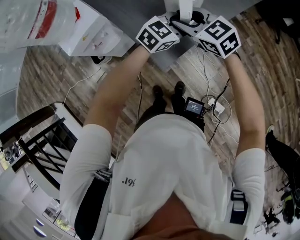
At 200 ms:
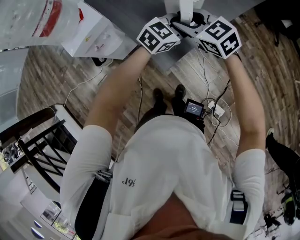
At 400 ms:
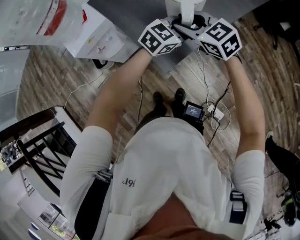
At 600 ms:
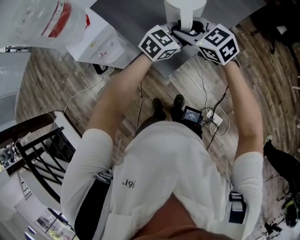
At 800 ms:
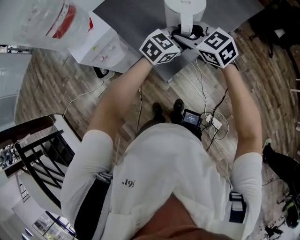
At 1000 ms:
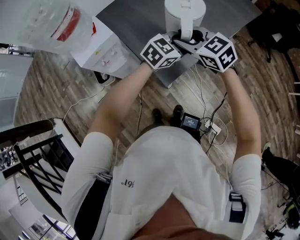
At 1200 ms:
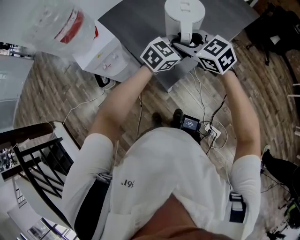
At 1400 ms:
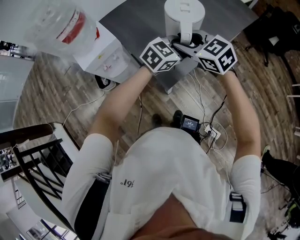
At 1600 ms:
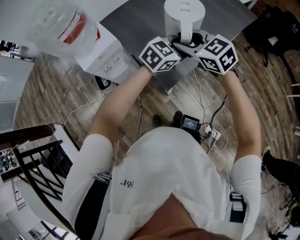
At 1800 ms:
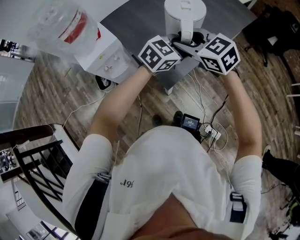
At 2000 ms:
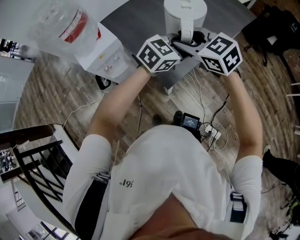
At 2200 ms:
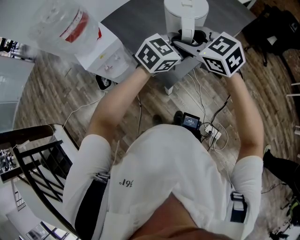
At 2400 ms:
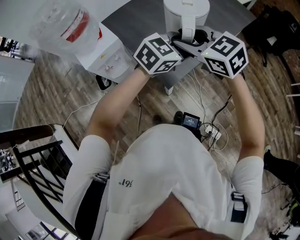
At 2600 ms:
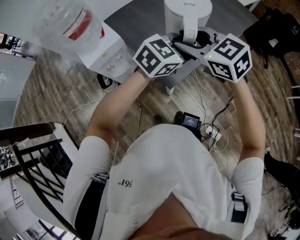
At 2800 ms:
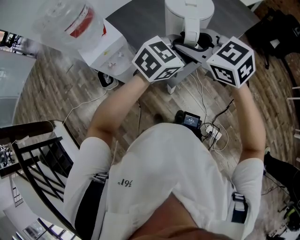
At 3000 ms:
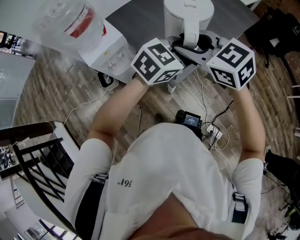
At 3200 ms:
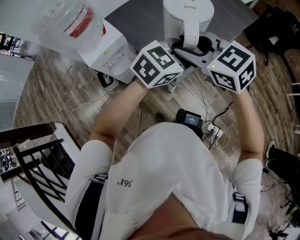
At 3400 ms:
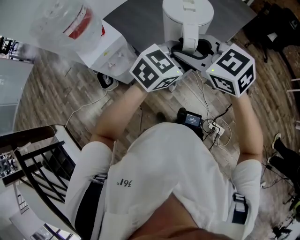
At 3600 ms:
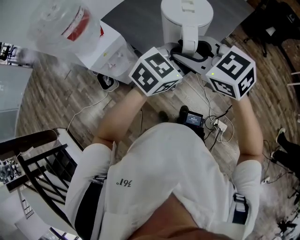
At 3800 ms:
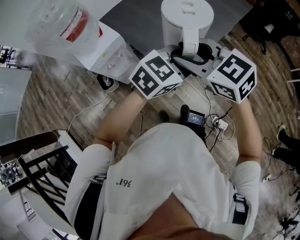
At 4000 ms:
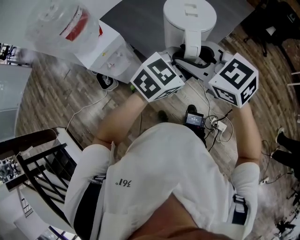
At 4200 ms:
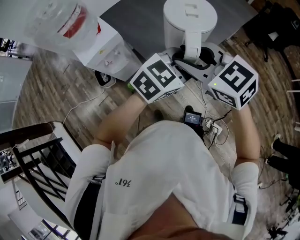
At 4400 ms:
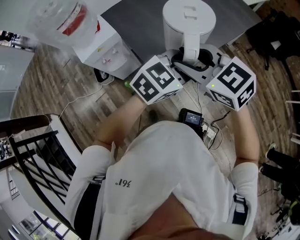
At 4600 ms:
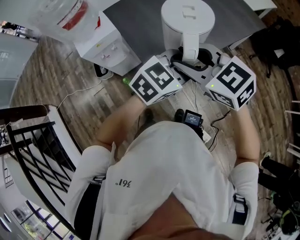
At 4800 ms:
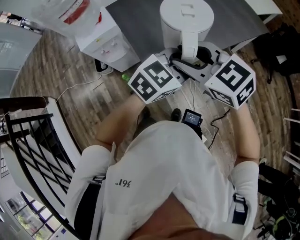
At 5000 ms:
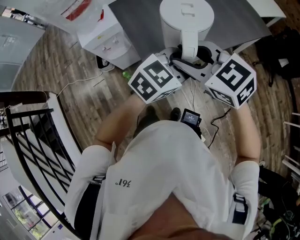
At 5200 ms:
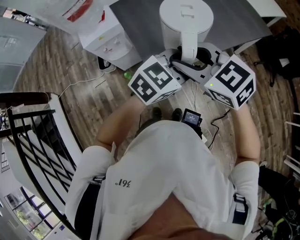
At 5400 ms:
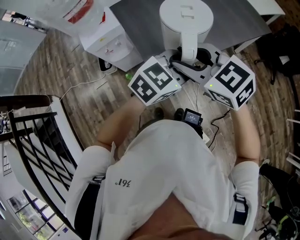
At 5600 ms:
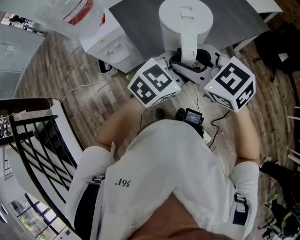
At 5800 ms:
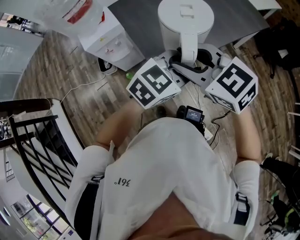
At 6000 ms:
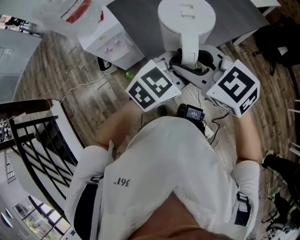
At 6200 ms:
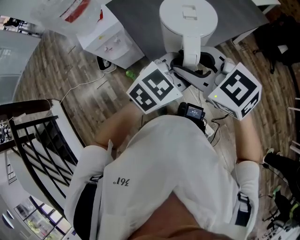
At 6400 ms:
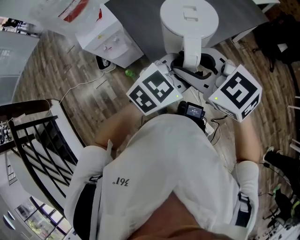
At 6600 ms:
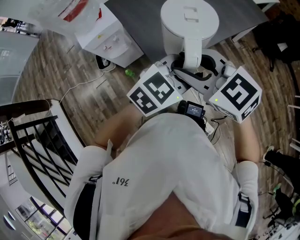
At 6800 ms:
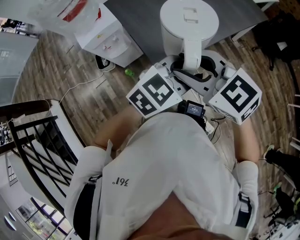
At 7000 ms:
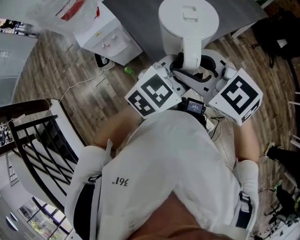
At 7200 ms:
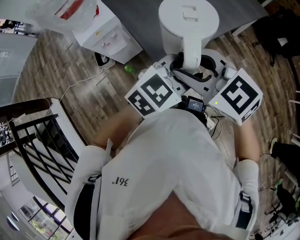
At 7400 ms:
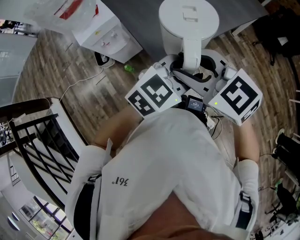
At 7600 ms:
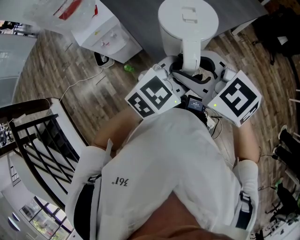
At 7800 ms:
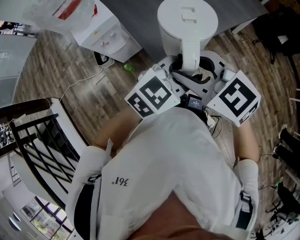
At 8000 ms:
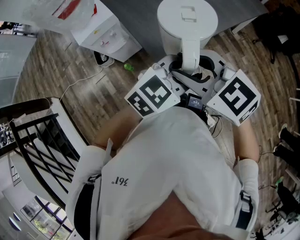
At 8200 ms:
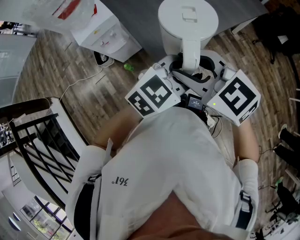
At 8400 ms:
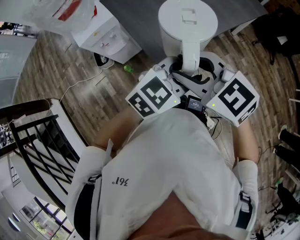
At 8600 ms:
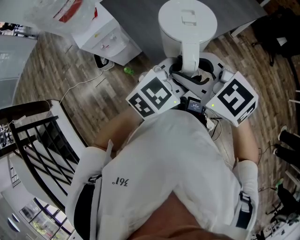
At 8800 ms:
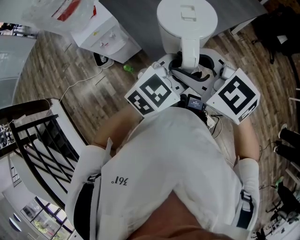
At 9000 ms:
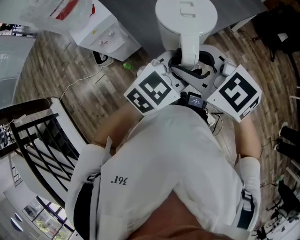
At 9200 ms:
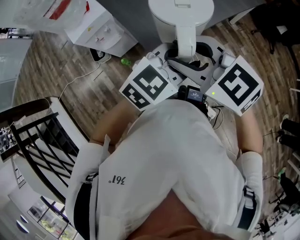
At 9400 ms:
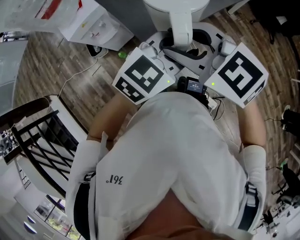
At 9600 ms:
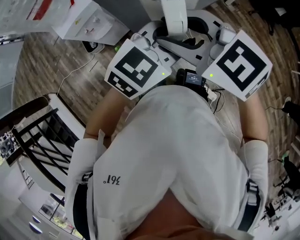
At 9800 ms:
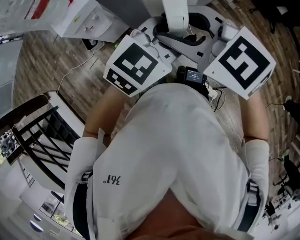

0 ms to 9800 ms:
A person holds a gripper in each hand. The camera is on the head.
0 ms to 1400 ms: The grippers both shift upward by roughly 10 cm.
1400 ms to 2800 ms: Both grippers travel together upward and backward, some 10 cm.
2800 ms to 4200 ms: The left gripper shifts by roughly 5 cm, while the right gripper changes place by roughly 5 cm.
4200 ms to 5600 ms: The grippers both shift to the right by approximately 5 cm.
5600 ms to 7000 ms: Both grippers move backward, about 5 cm.
7000 ms to 9800 ms: The grippers make only small movements.

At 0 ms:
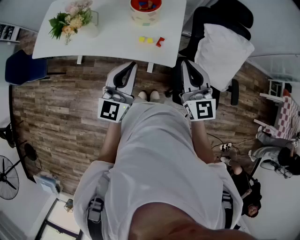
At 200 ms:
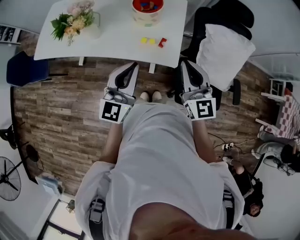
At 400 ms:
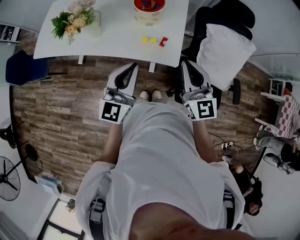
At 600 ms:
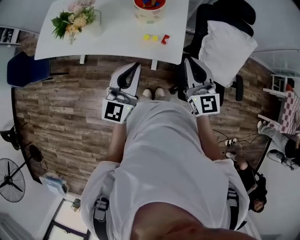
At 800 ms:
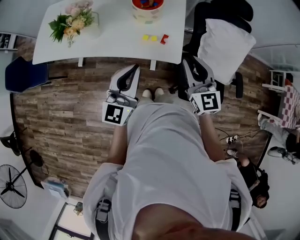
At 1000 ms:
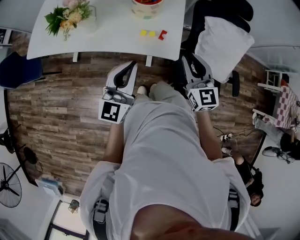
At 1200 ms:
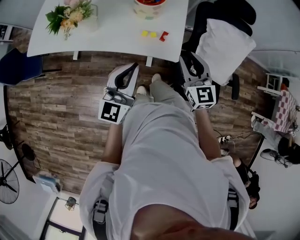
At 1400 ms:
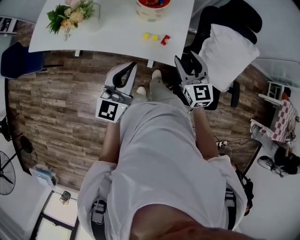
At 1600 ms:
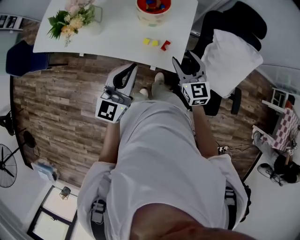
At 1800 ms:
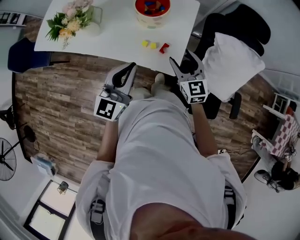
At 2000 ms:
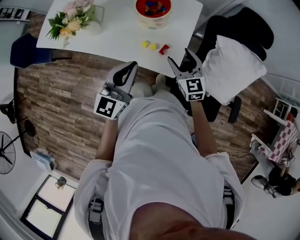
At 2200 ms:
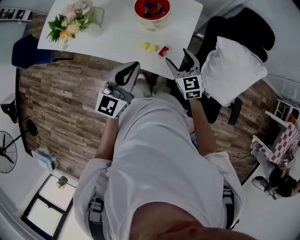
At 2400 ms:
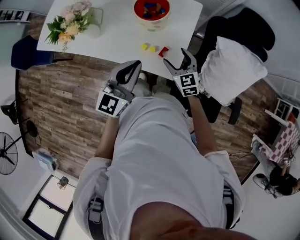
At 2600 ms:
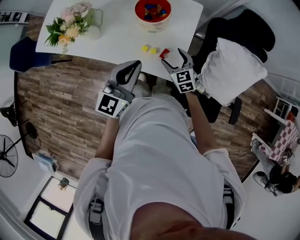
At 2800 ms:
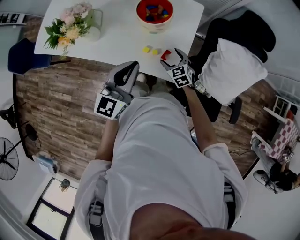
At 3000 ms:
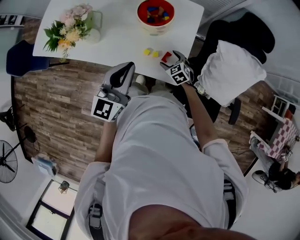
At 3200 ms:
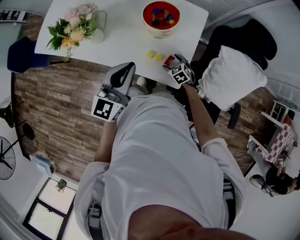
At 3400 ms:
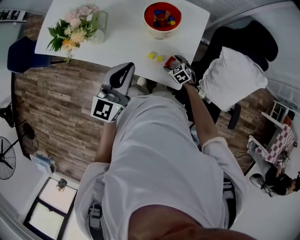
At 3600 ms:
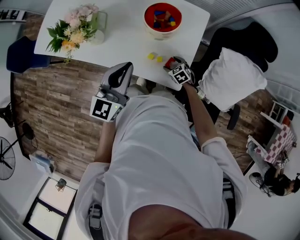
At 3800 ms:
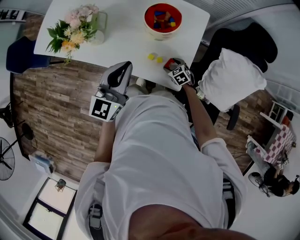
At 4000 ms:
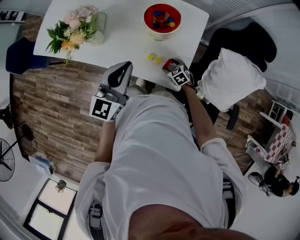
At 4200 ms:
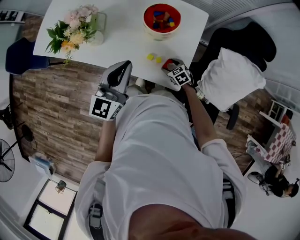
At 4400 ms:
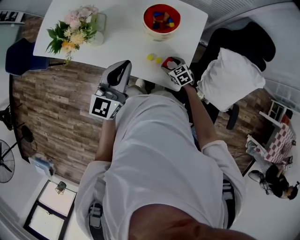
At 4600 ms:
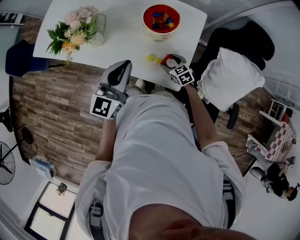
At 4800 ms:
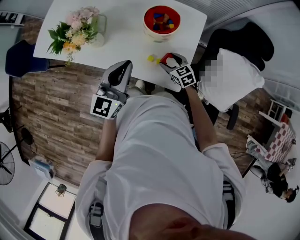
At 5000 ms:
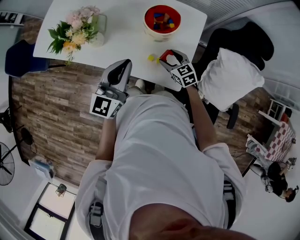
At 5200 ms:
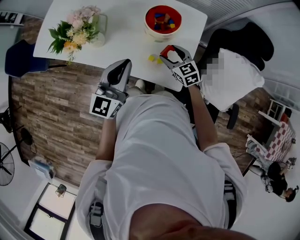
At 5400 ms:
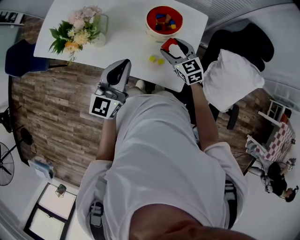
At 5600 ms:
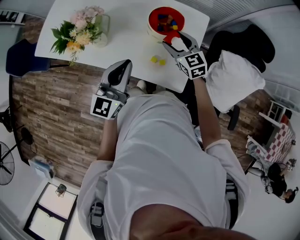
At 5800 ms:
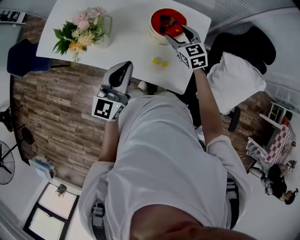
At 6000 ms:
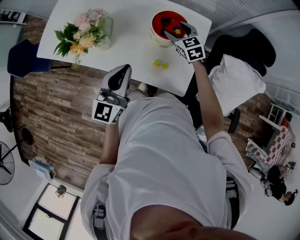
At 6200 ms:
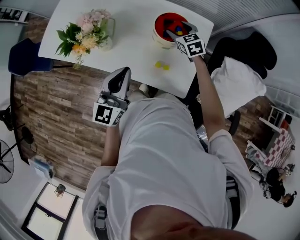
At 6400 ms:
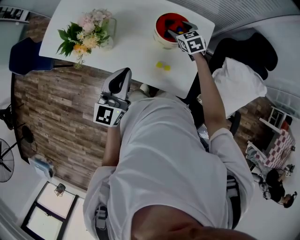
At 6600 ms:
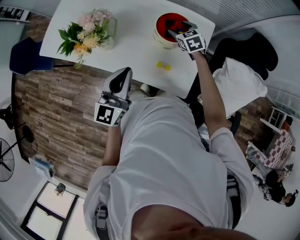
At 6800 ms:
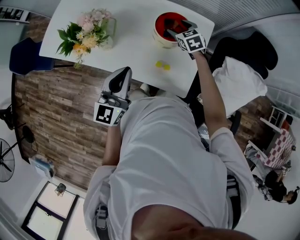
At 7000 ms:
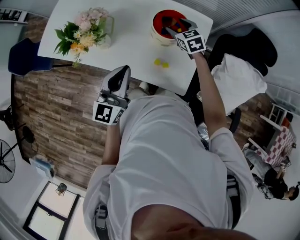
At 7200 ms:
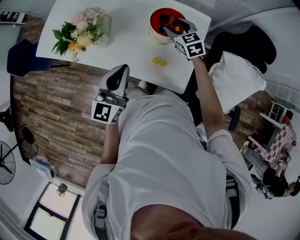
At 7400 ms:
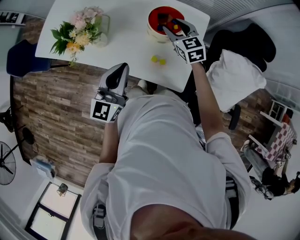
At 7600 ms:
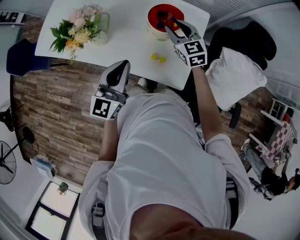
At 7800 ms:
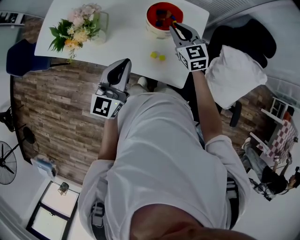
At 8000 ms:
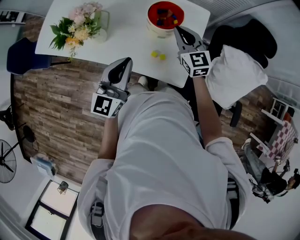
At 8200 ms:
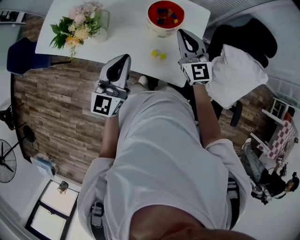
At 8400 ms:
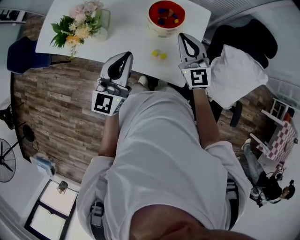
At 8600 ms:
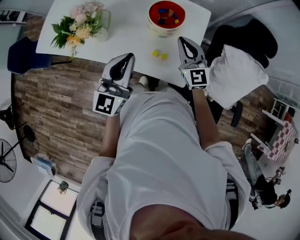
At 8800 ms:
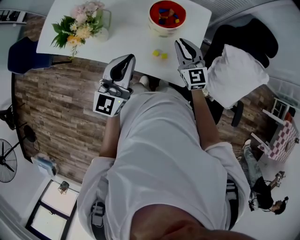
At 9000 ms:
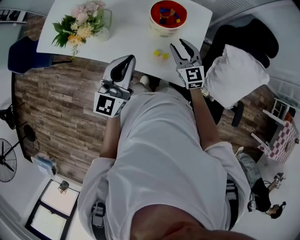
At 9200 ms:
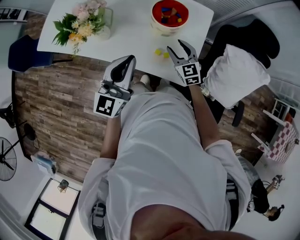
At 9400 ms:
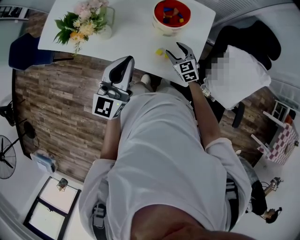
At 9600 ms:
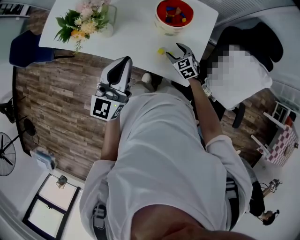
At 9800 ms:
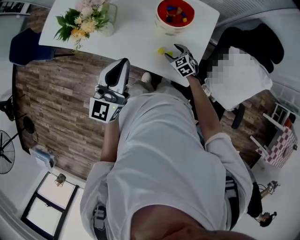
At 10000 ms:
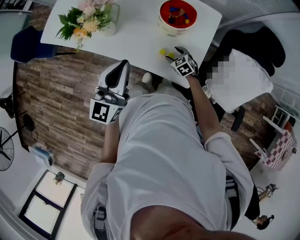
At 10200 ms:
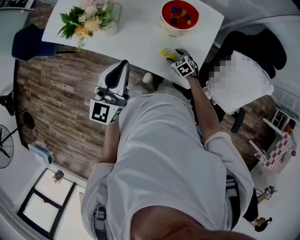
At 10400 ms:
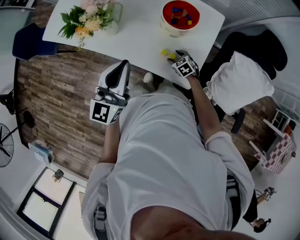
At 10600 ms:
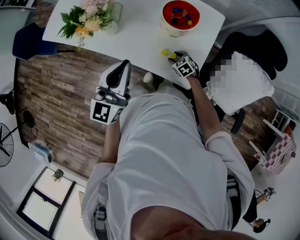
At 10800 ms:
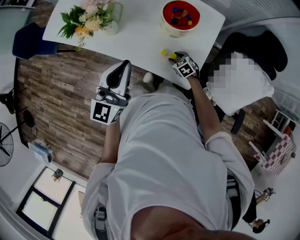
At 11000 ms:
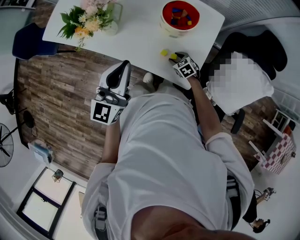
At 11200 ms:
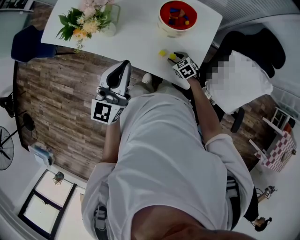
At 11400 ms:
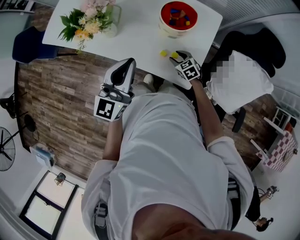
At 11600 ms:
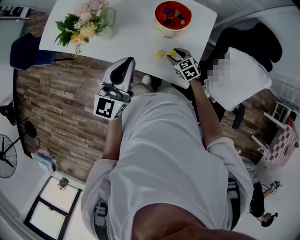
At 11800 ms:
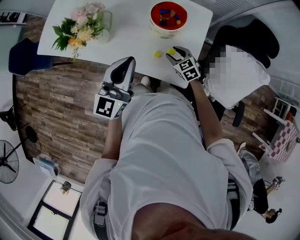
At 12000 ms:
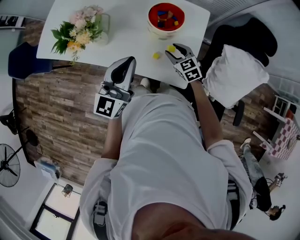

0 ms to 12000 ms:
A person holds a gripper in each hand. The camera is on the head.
0 ms to 1600 ms: The left gripper shifts by some 5 cm, while the right gripper travels downward and forward by some 15 cm, and opens its fingers.
1600 ms to 3000 ms: The left gripper heads forward, covering roughly 10 cm. The right gripper is displaced downward by some 25 cm, points its fingers roughly 30 degrees further downward, and opens up.
3000 ms to 4400 ms: The grippers stay close to where they were, moving slightly.
4400 ms to 6000 ms: The right gripper goes some 25 cm upward and forward, and swivels roughly 20 degrees.
6000 ms to 7600 ms: The right gripper shifts by about 5 cm, and closes.
7600 ms to 9000 ms: The right gripper is displaced backward by approximately 10 cm, and closes, then reopens.
9000 ms to 10400 ms: The right gripper heads downward, covering some 25 cm, and tips its fingers downward by about 40 degrees.
10400 ms to 12000 ms: The right gripper is displaced upward by about 15 cm, and rotates approximately 20 degrees.

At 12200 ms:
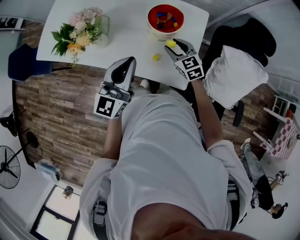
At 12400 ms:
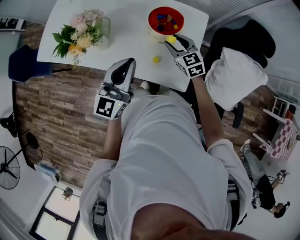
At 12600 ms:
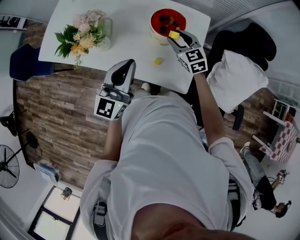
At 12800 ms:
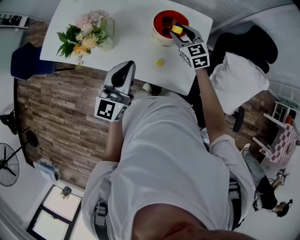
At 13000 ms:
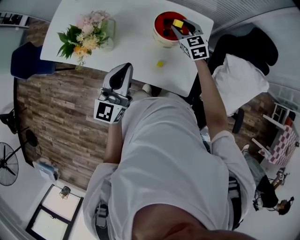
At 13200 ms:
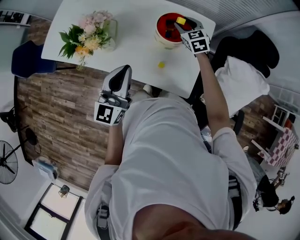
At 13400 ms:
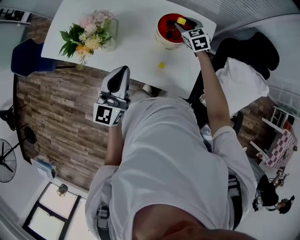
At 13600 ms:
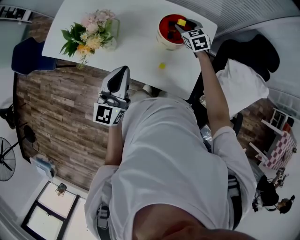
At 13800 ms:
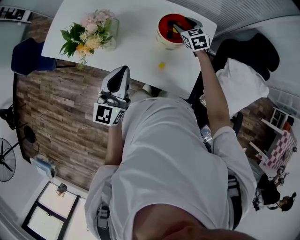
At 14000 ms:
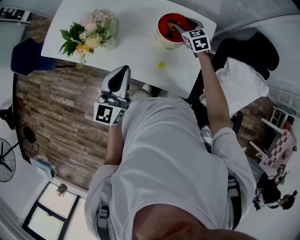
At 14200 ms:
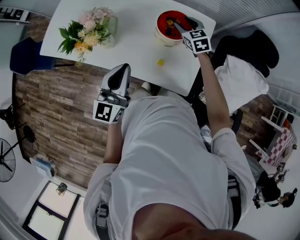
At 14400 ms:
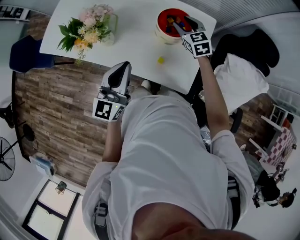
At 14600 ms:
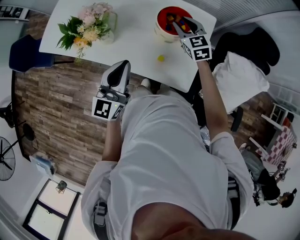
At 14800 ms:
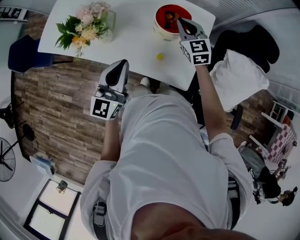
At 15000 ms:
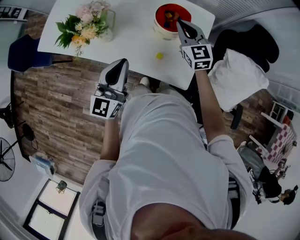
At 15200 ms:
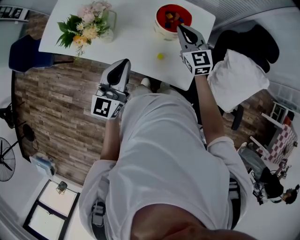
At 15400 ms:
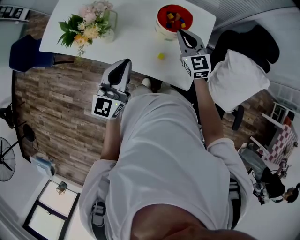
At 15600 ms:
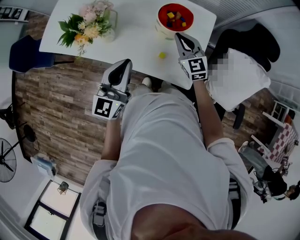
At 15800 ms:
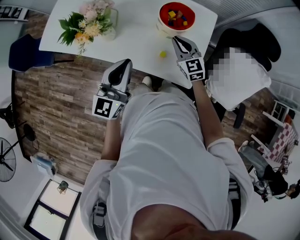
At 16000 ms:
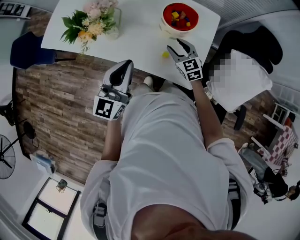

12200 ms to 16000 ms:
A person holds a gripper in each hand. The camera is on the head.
12200 ms to 13400 ms: The right gripper goes about 15 cm forward. The left gripper shifts roughly 5 cm to the left.
13400 ms to 14800 ms: The right gripper goes about 10 cm backward and upward, and closes.
14800 ms to 16000 ms: The right gripper travels downward and backward by roughly 15 cm, and opens its fingers.
